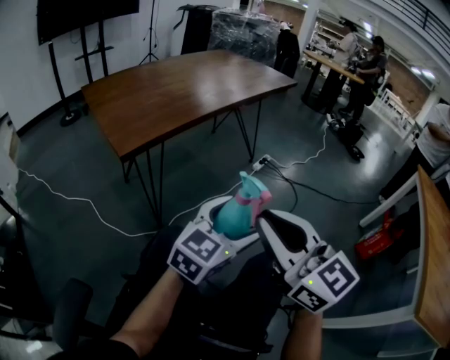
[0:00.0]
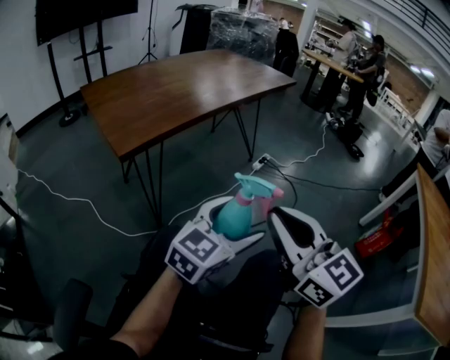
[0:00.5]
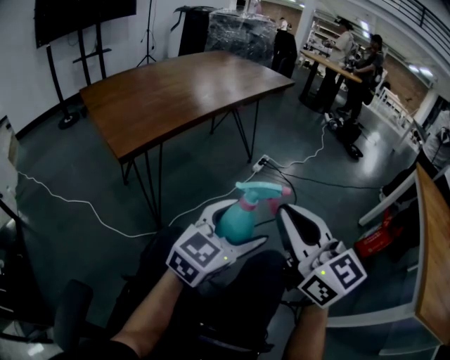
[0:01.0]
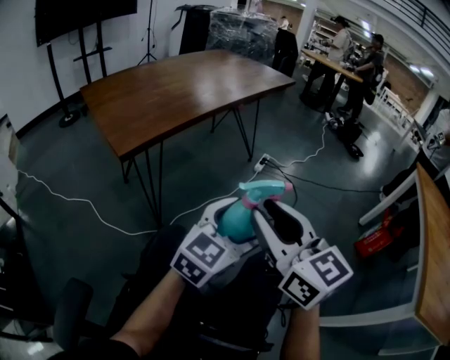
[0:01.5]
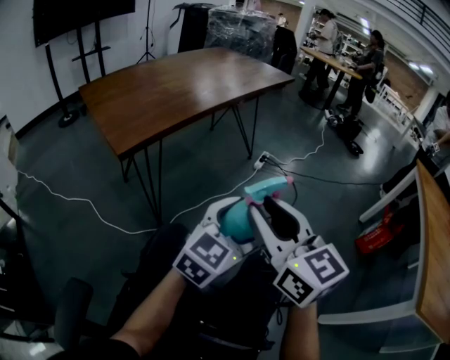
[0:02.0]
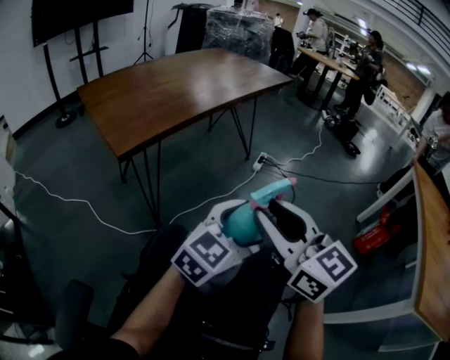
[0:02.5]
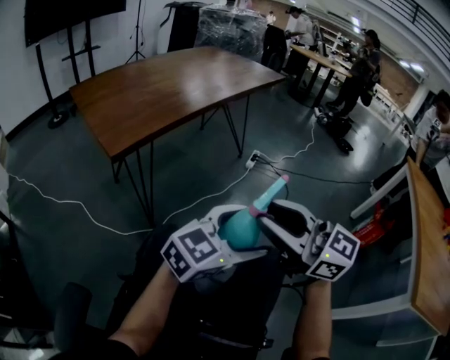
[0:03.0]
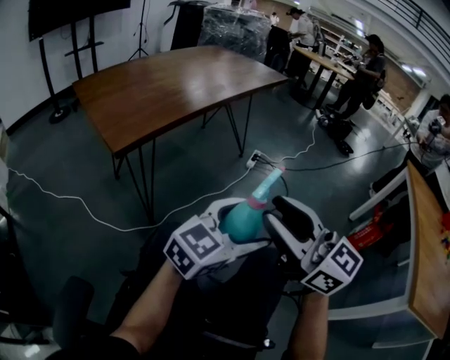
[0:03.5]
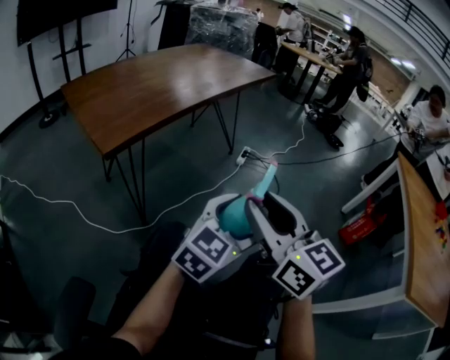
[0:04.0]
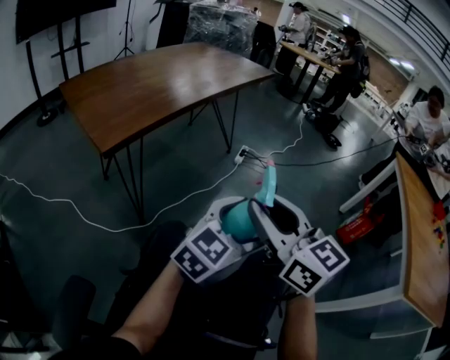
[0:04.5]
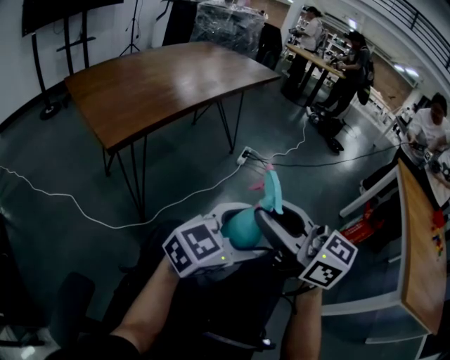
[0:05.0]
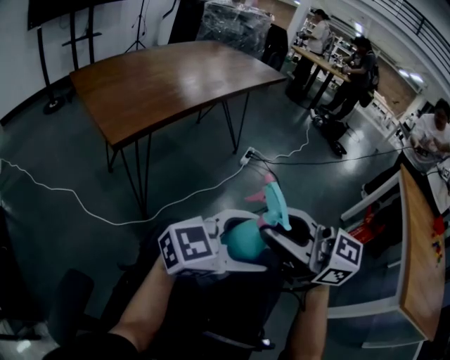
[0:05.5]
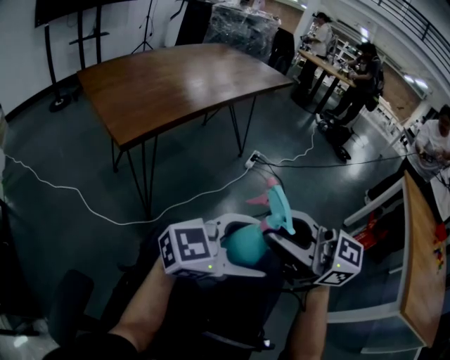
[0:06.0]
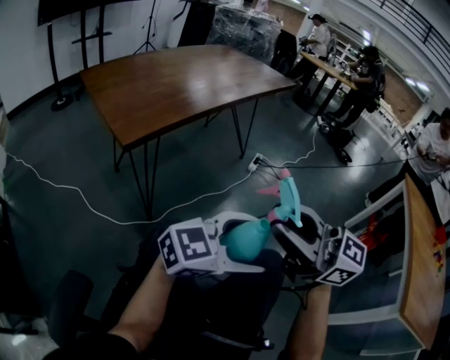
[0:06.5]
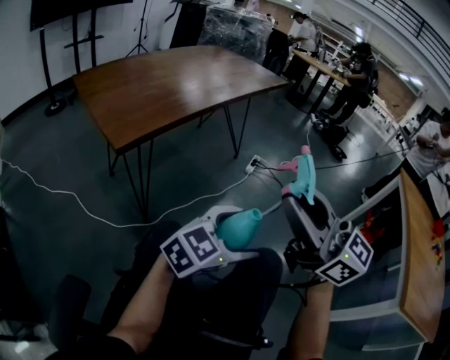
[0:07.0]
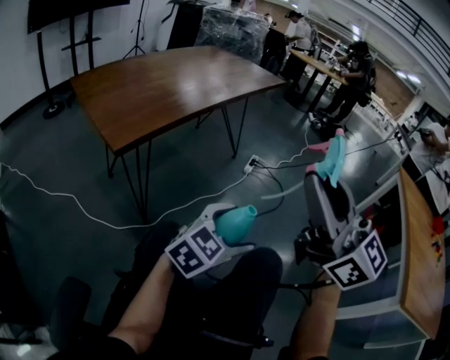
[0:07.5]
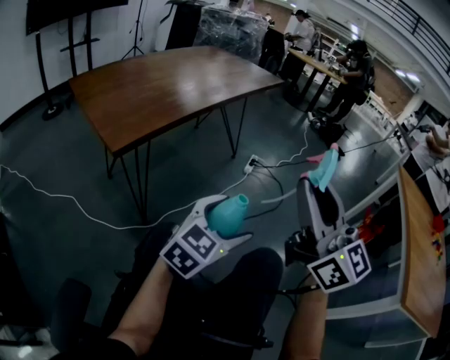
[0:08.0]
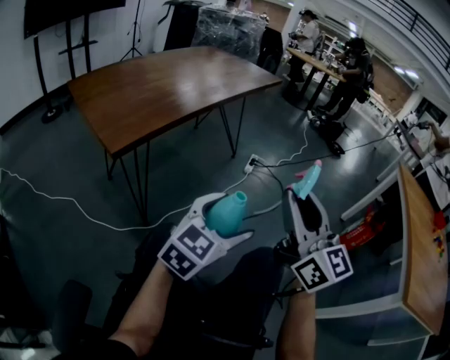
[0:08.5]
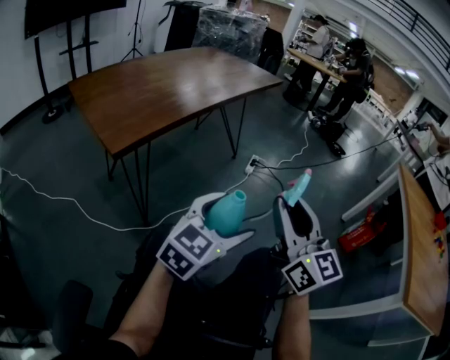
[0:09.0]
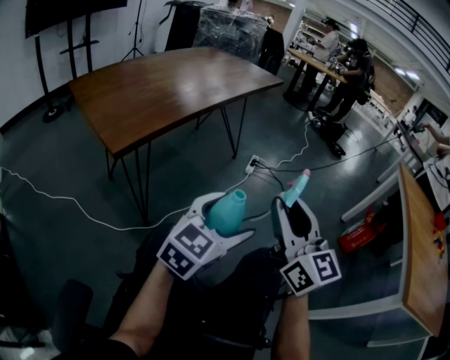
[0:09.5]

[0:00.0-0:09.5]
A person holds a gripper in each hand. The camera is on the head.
0:00.0 to 0:02.0: The grippers move only a little.
0:04.0 to 0:05.5: The left gripper ends up about 10 cm from where it was, and changes its angle by roughly 30 degrees. Meanwhile the right gripper changes place by about 5 cm, and swivels roughly 40 degrees.
0:05.5 to 0:07.5: The right gripper is displaced upward by roughly 10 cm, and swivels about 30 degrees. The left gripper moves approximately 10 cm, and rotates approximately 30 degrees.
0:07.5 to 0:09.5: The right gripper shifts some 10 cm downward. The left gripper changes place by some 5 cm.

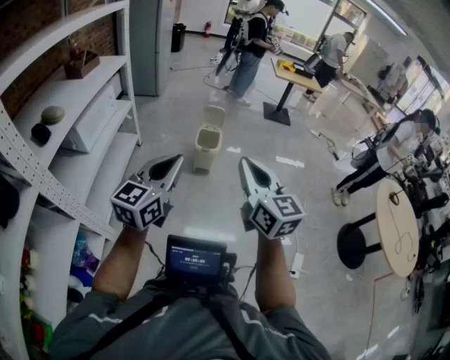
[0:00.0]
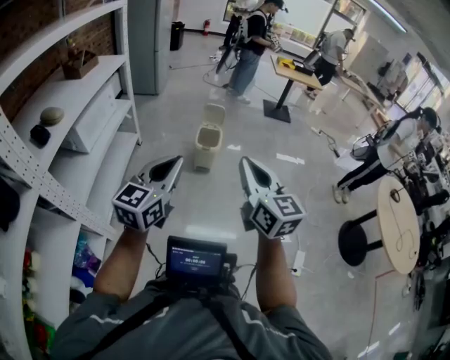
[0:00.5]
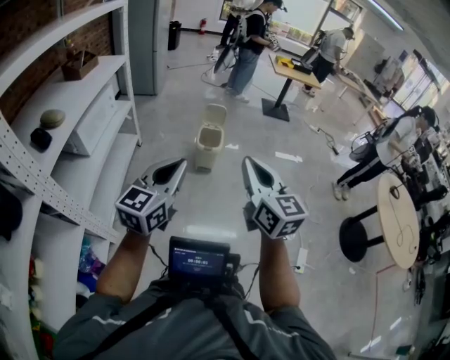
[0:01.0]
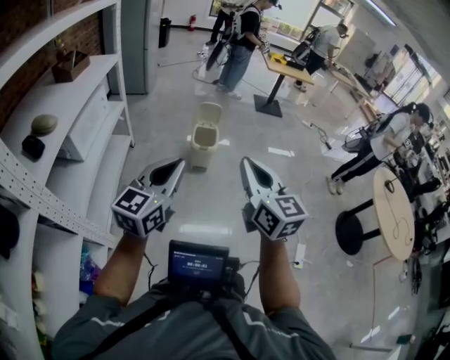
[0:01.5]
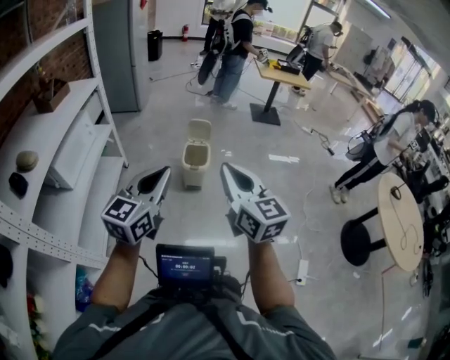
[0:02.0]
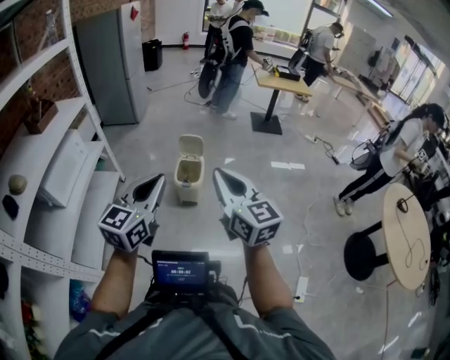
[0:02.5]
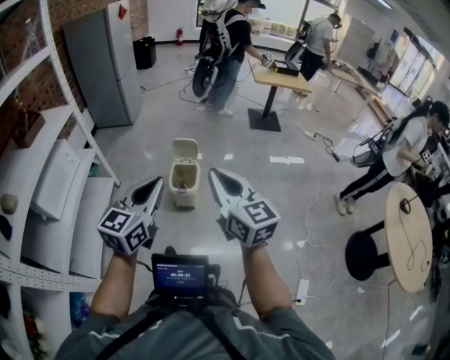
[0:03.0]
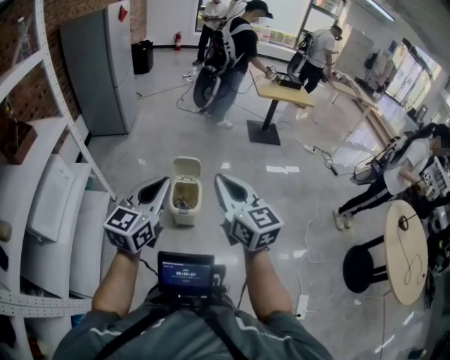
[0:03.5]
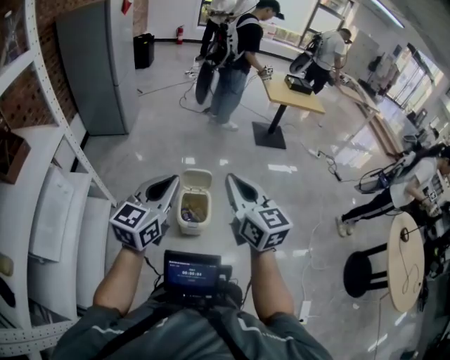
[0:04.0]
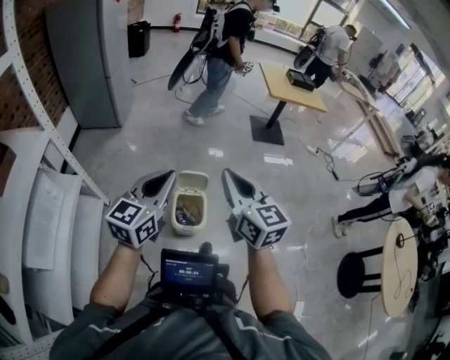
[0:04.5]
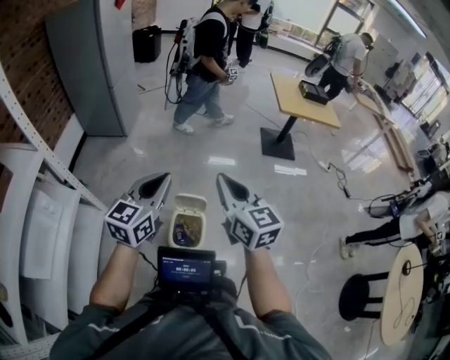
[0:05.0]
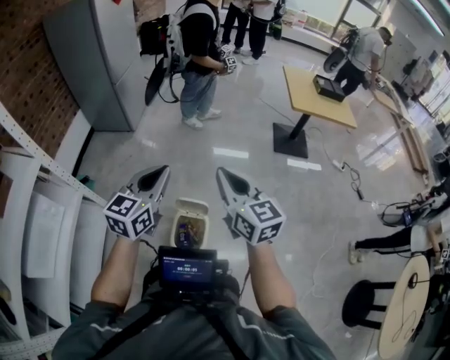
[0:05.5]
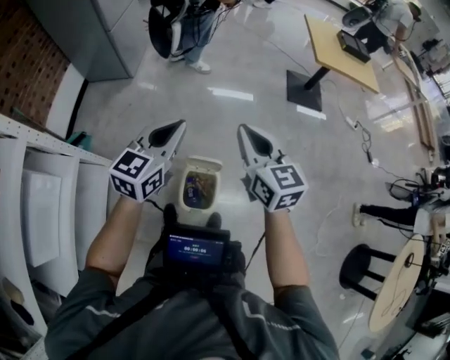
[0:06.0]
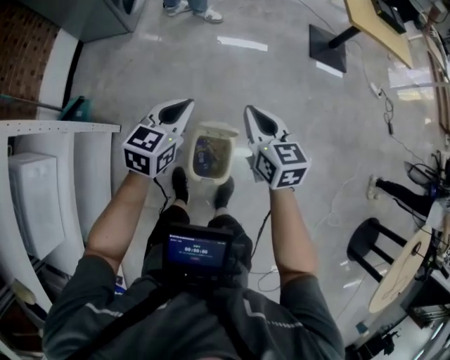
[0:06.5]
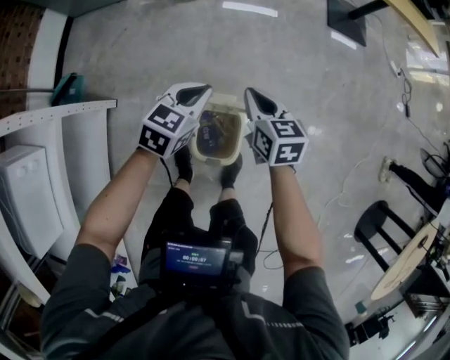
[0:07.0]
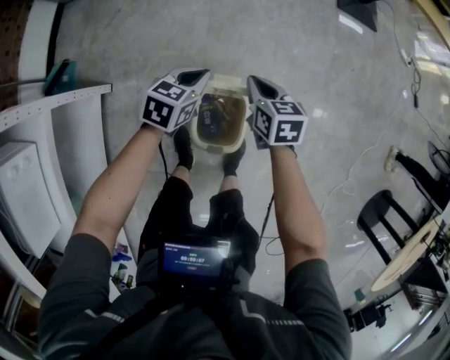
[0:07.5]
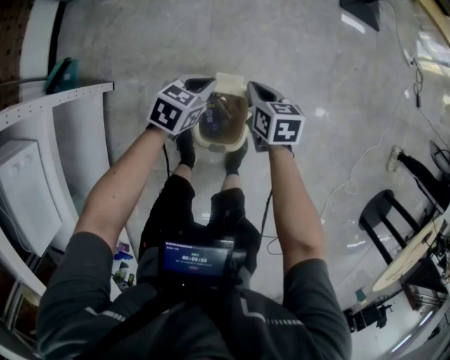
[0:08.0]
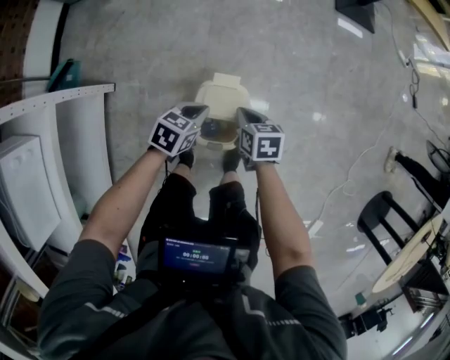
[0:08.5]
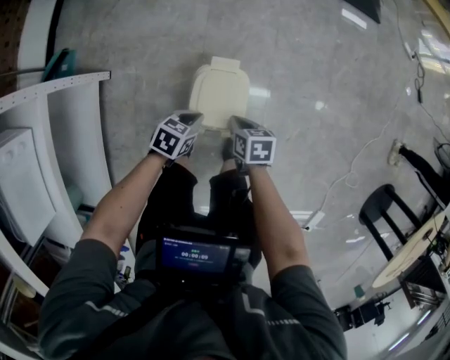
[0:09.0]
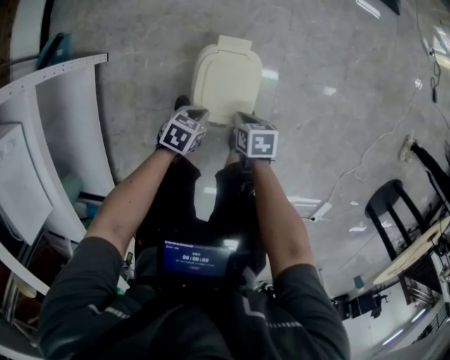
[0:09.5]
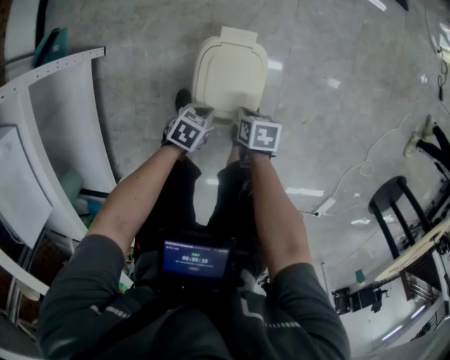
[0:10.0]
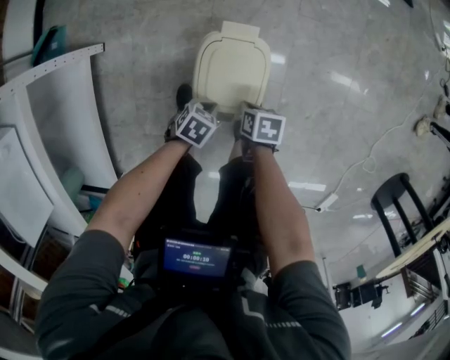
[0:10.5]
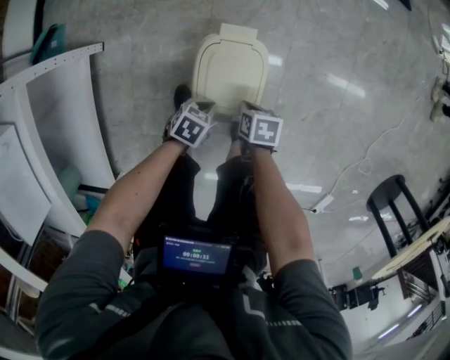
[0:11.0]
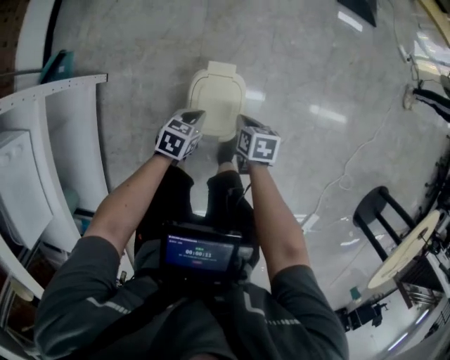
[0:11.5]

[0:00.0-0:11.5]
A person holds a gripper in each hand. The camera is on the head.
0:00.0 to 0:02.0: Both grippers travel together forward, about 15 cm.
0:02.0 to 0:04.0: The pair of grippers is taken forward, about 40 cm.
0:04.0 to 0:06.0: The grippers both shift forward by some 30 cm.
0:06.0 to 0:07.5: The grippers both shift downward by approximately 40 cm. The right gripper tilts its fingers approximately 30 degrees downward. Meanwhile the left gripper swivels roughly 30 degrees.
0:07.5 to 0:09.5: The right gripper shifts by roughly 30 cm, and swivels approximately 30 degrees; the left gripper moves roughly 30 cm, and swivels approximately 30 degrees.
0:09.5 to 0:11.5: The left gripper moves upward, roughly 10 cm. The right gripper shifts by approximately 10 cm.

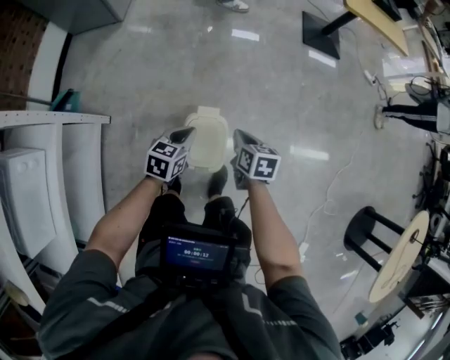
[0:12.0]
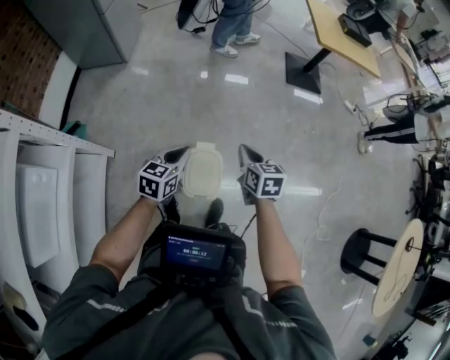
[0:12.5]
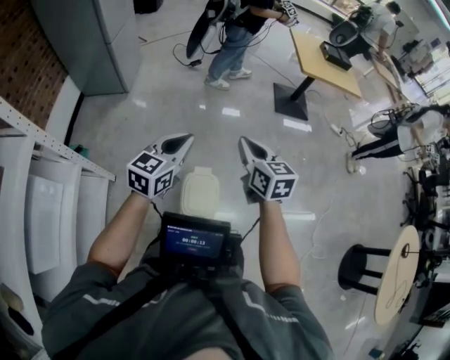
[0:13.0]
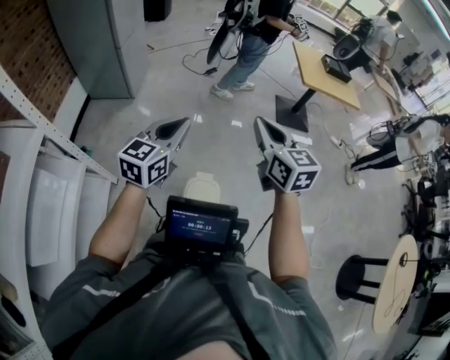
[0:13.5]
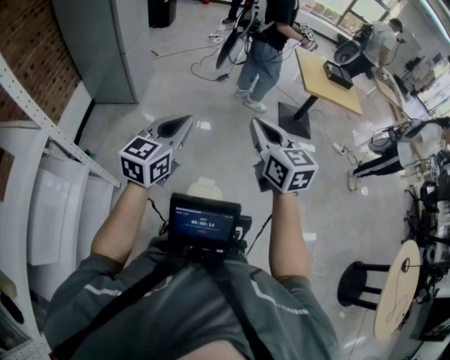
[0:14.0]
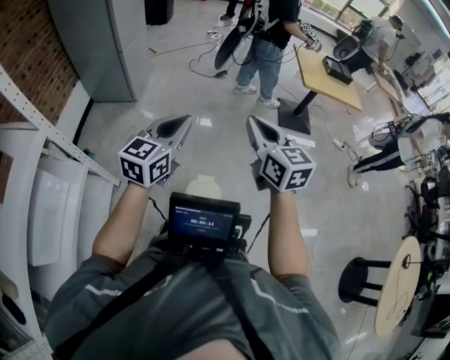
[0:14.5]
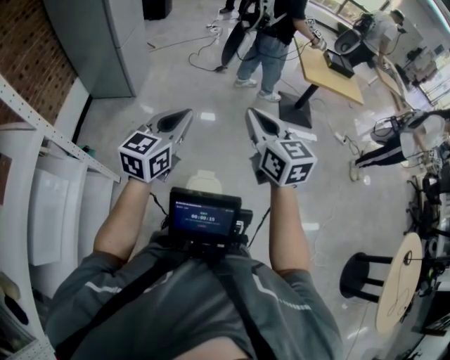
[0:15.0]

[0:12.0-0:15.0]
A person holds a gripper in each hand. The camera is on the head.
0:12.0 to 0:13.5: The two grippers go roughly 40 cm upward. The right gripper tilts its fingers roughly 40 degrees upward; the left gripper angles its fingers upward, by approximately 30 degrees.
0:13.5 to 0:15.0: The grippers stay close to where they were, moving slightly.

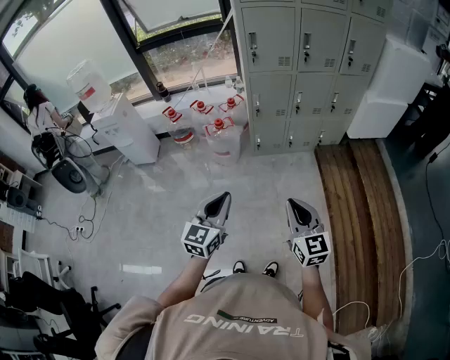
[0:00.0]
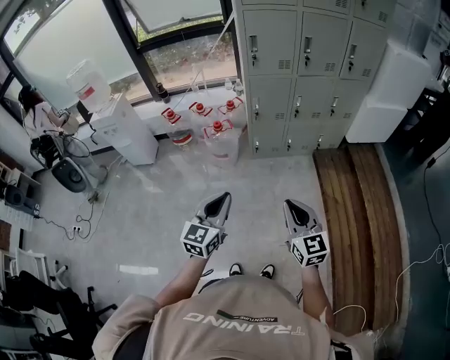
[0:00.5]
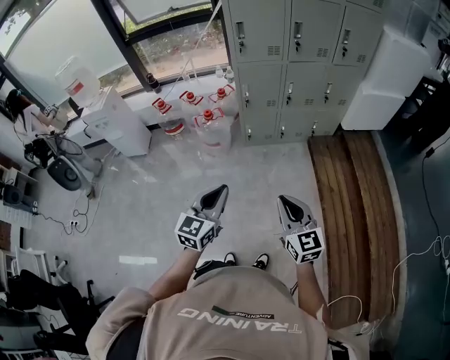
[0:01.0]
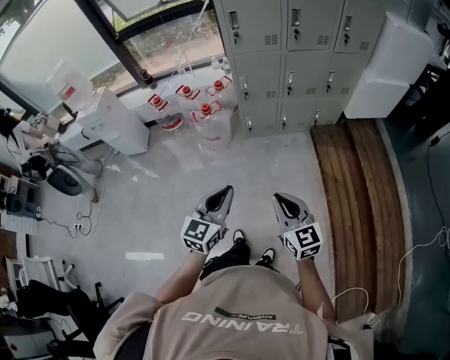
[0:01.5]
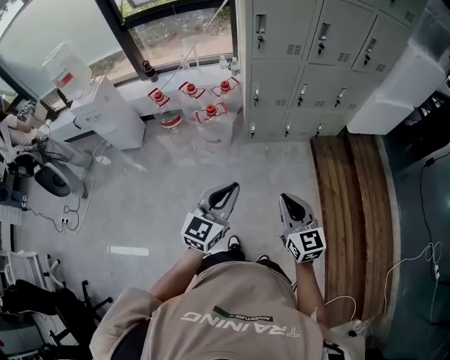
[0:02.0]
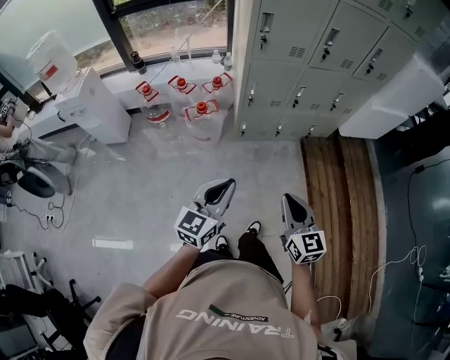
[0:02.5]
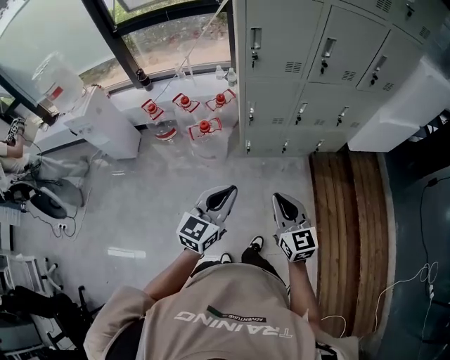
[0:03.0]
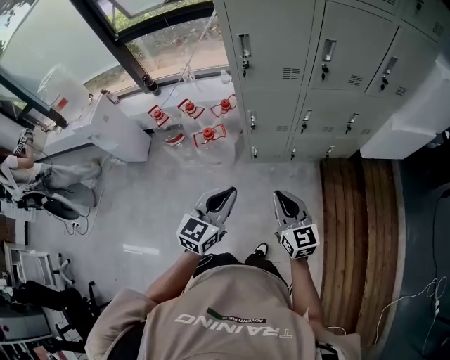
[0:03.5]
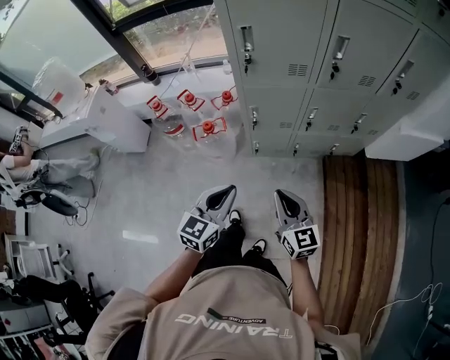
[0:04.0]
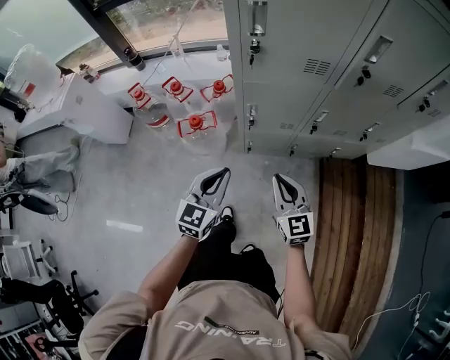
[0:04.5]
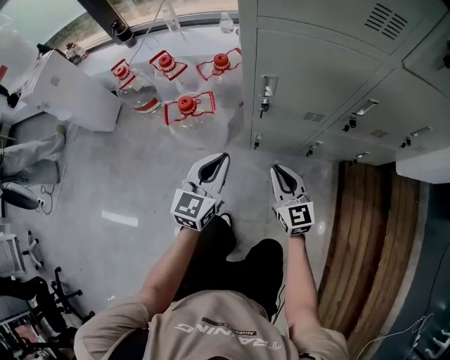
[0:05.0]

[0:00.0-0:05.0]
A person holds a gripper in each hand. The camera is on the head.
0:00.0 to 0:02.5: Both grippers travel together forward, some 15 cm.
0:02.5 to 0:05.0: Both grippers are carried forward, approximately 40 cm. The two grippers go roughly 40 cm downward.
